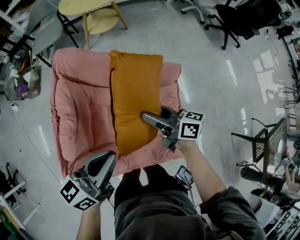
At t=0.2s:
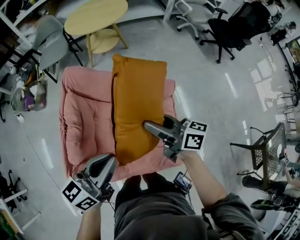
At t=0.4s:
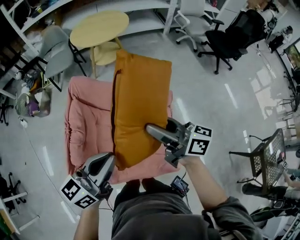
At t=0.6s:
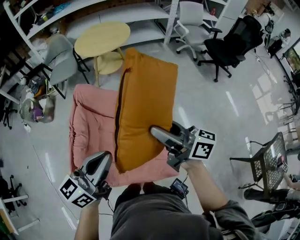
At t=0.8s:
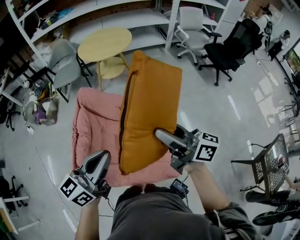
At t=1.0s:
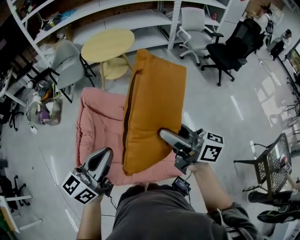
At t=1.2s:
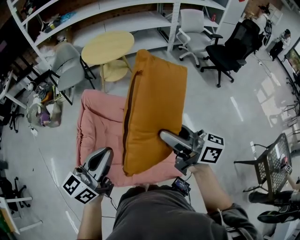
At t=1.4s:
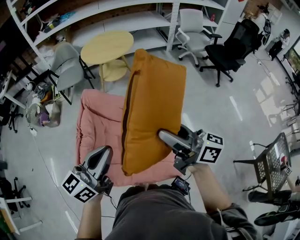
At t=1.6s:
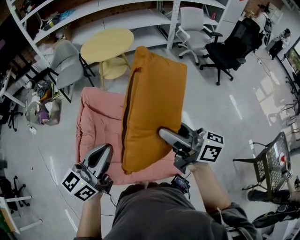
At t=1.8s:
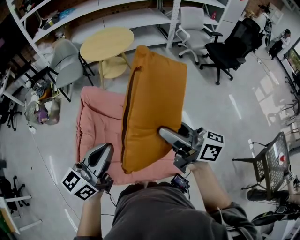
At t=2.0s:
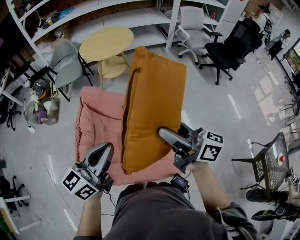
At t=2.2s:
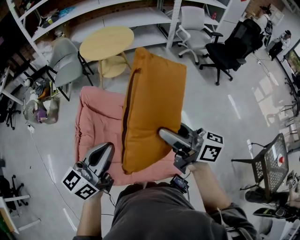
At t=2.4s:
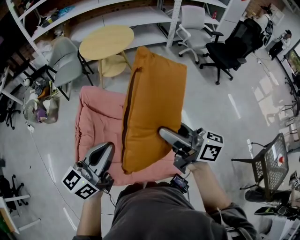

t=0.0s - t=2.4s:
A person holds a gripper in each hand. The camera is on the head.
t=0.0s - t=1.2s: The left gripper moves upward, some 15 cm. Meanwhile the right gripper heads upward, covering approximately 30 cm, and turns by approximately 20 degrees.
t=1.2s - t=2.4s: There are only small adjustments of the grippers.

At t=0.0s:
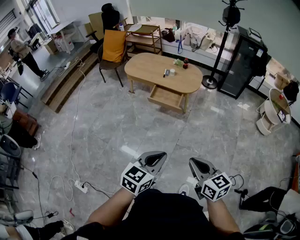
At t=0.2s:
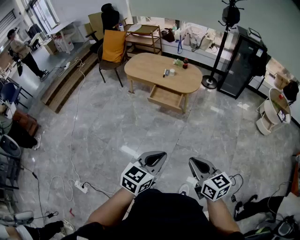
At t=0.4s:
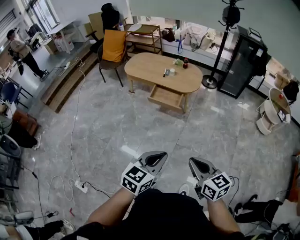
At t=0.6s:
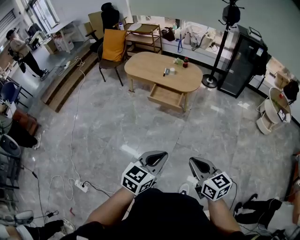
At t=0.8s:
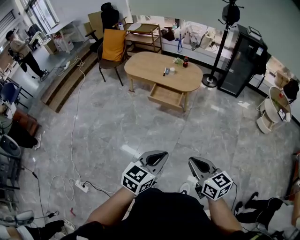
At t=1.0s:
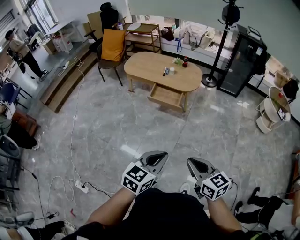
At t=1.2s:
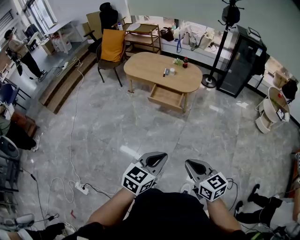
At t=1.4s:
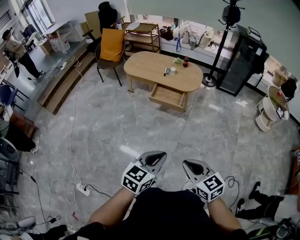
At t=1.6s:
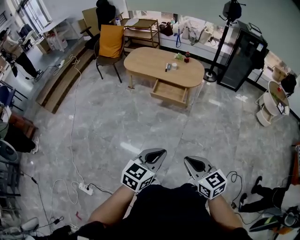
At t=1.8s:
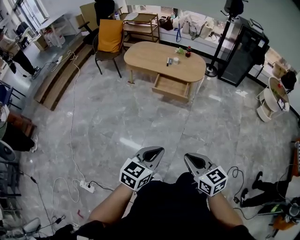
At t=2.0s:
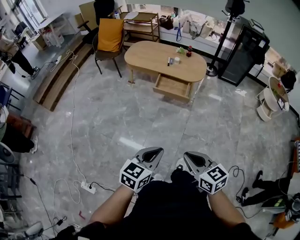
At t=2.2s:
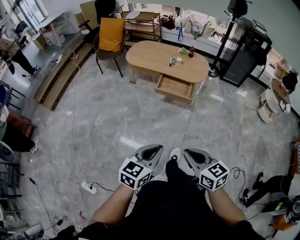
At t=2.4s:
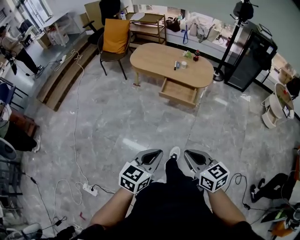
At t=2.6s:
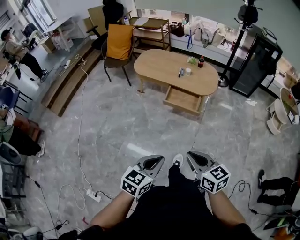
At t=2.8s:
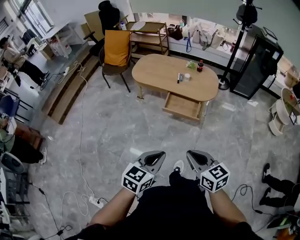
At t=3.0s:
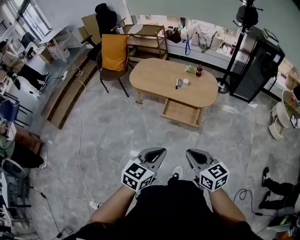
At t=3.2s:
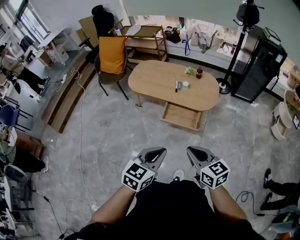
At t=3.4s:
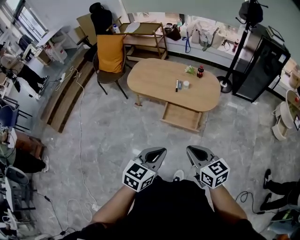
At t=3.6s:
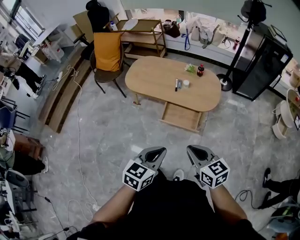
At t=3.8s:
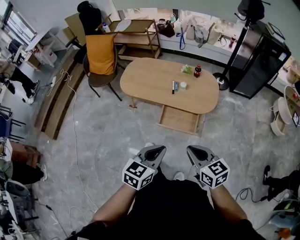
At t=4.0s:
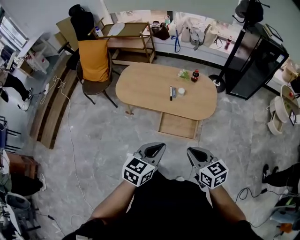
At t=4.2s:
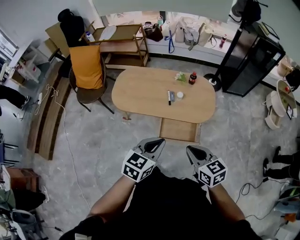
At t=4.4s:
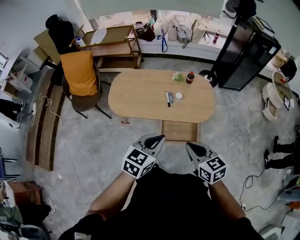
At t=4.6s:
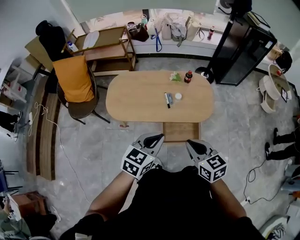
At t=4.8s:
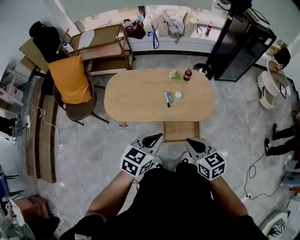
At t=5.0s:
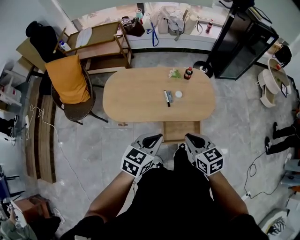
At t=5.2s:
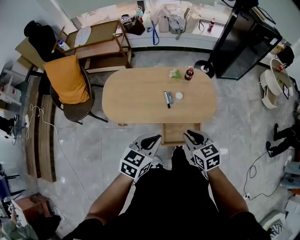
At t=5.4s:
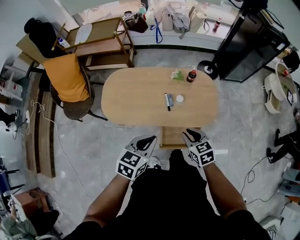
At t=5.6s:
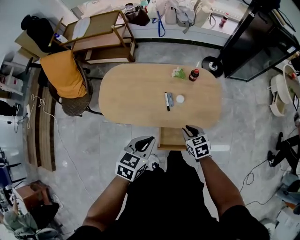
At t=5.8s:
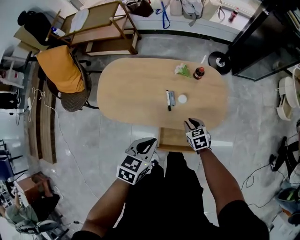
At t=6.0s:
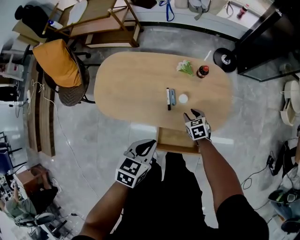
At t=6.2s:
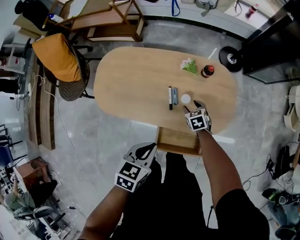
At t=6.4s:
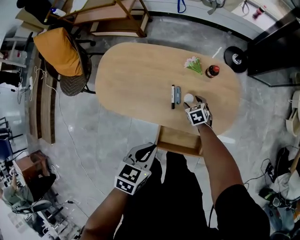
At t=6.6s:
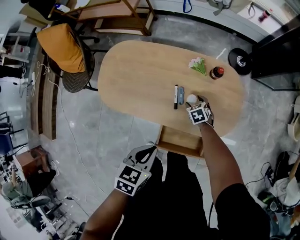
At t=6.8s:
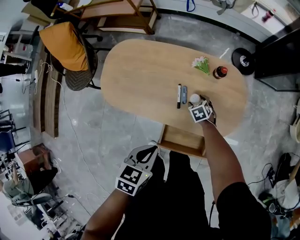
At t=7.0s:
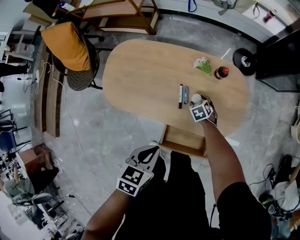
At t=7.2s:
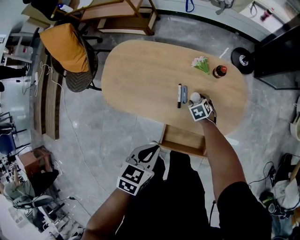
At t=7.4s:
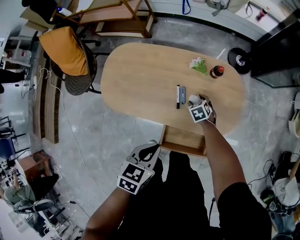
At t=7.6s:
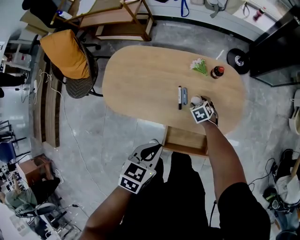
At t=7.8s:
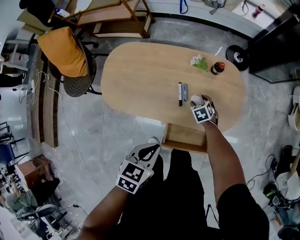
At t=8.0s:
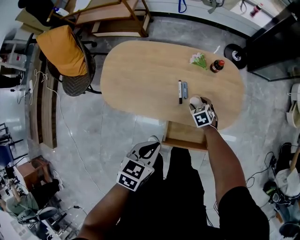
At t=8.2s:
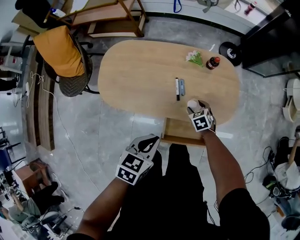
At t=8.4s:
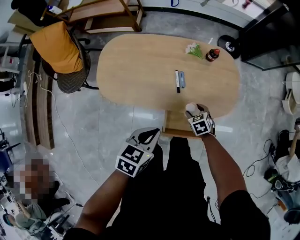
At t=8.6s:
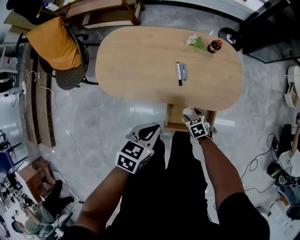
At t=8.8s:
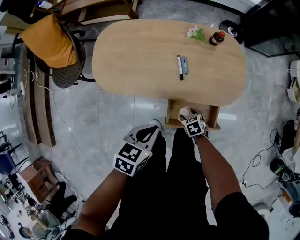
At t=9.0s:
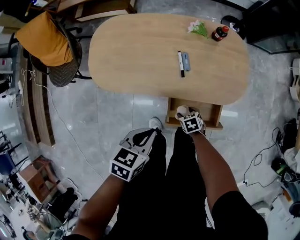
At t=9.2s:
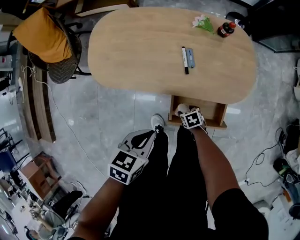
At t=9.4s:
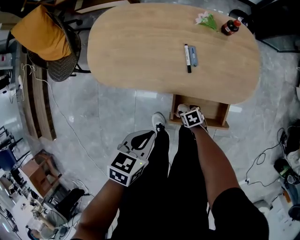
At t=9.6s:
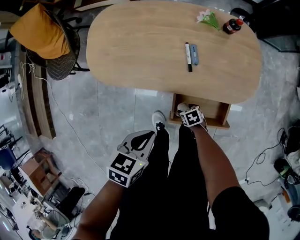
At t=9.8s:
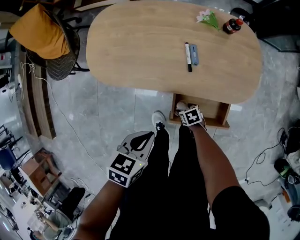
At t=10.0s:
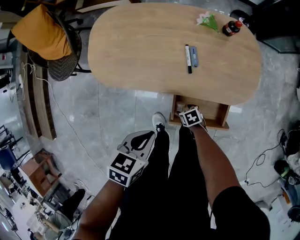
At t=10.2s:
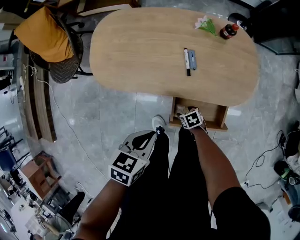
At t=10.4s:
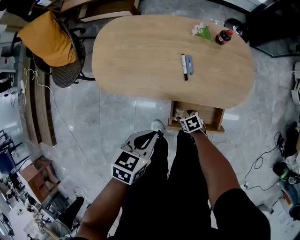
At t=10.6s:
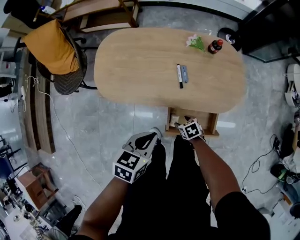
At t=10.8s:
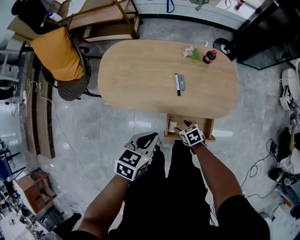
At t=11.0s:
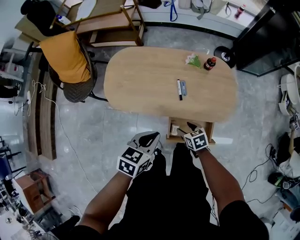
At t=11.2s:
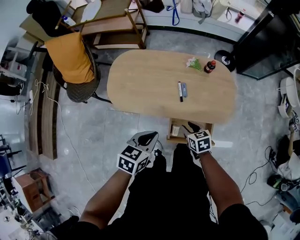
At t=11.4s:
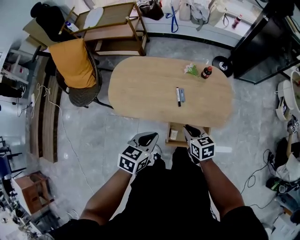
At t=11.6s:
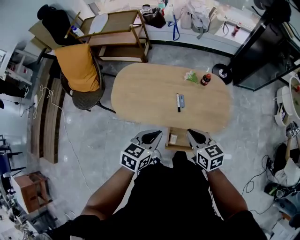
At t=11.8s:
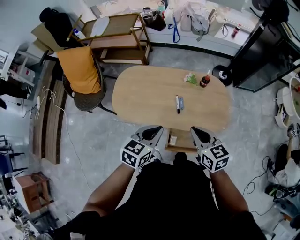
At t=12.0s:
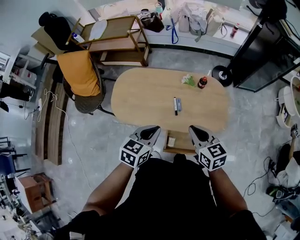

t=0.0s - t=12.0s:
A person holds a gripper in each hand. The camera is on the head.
t=0.0s - t=1.6s: Both grippers move to the left, roughly 10 cm.
t=1.6s - t=3.0s: The grippers both shift forward by some 25 cm.
t=3.0s - t=4.4s: Both grippers move forward, approximately 35 cm.
t=4.4s - t=6.0s: The right gripper goes roughly 50 cm downward and forward, swivels approximately 30 degrees, and opens, while the left gripper is displaced forward and downward by some 25 cm, and changes its angle by about 20 degrees.
t=6.0s - t=7.6s: The right gripper heads downward and forward, covering approximately 10 cm, and opens.
t=7.6s - t=9.0s: The right gripper travels backward by roughly 25 cm, and changes its angle by some 20 degrees; the left gripper goes roughly 10 cm backward, downward and to the left.
t=10.4s - t=12.0s: The right gripper travels upward by some 50 cm, points its fingers approximately 40 degrees further upward, and closes its fingers. The left gripper shifts about 20 cm upward.

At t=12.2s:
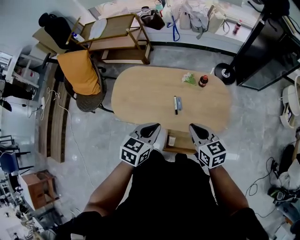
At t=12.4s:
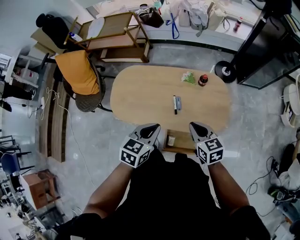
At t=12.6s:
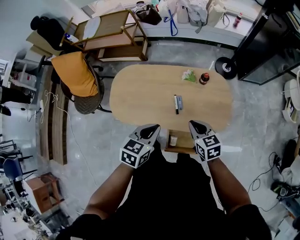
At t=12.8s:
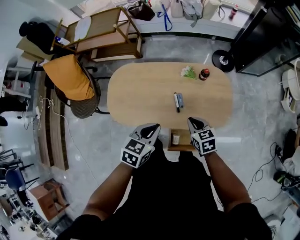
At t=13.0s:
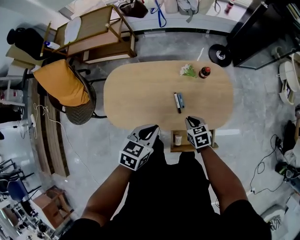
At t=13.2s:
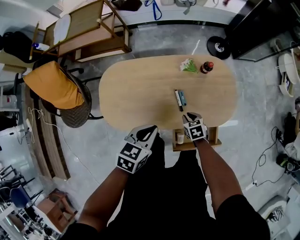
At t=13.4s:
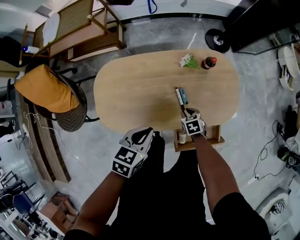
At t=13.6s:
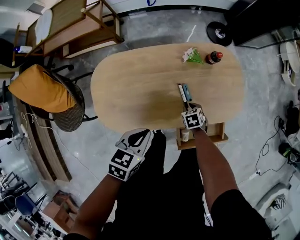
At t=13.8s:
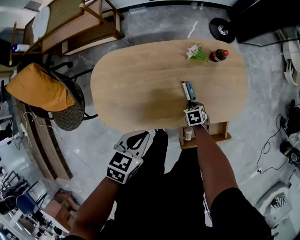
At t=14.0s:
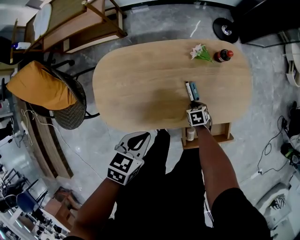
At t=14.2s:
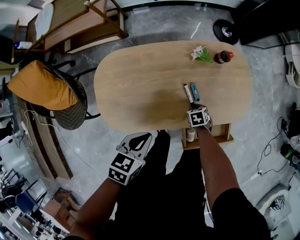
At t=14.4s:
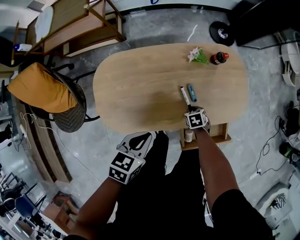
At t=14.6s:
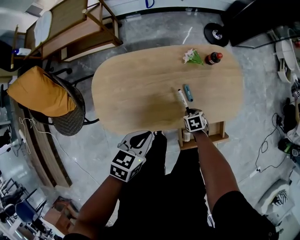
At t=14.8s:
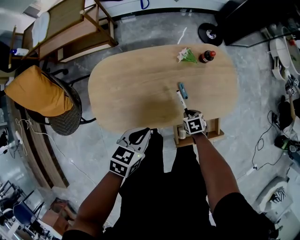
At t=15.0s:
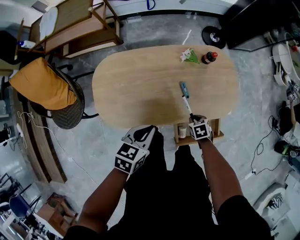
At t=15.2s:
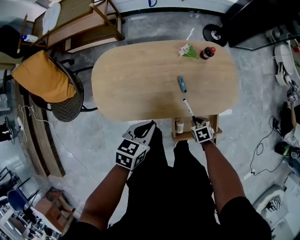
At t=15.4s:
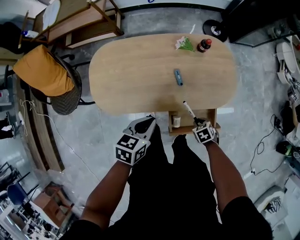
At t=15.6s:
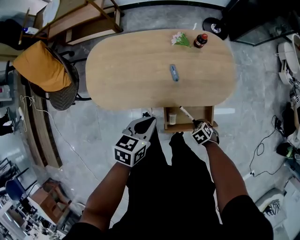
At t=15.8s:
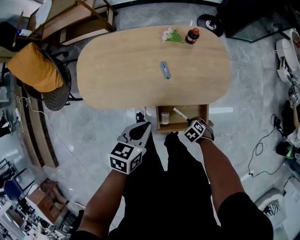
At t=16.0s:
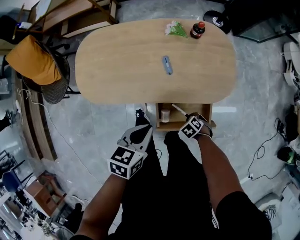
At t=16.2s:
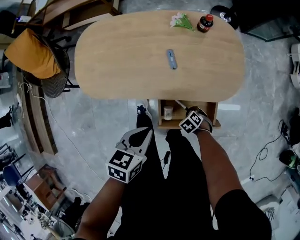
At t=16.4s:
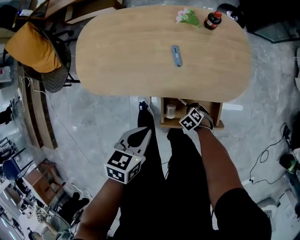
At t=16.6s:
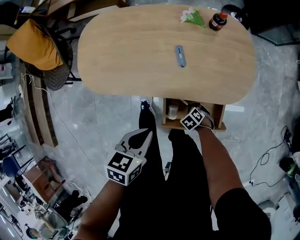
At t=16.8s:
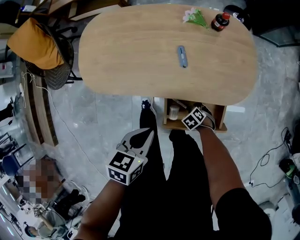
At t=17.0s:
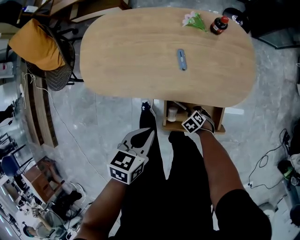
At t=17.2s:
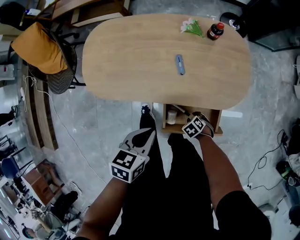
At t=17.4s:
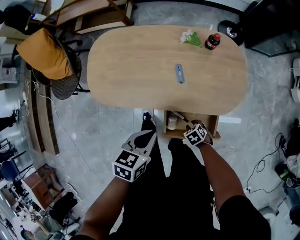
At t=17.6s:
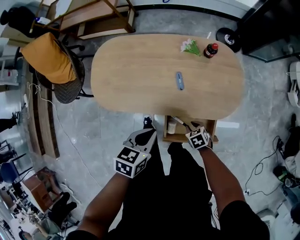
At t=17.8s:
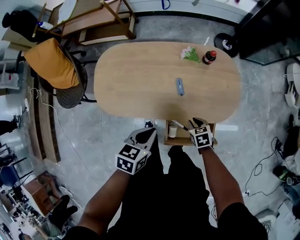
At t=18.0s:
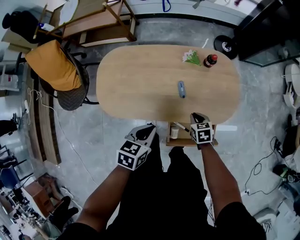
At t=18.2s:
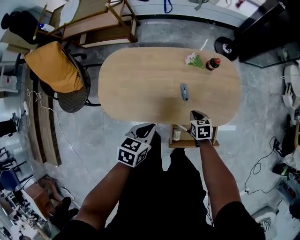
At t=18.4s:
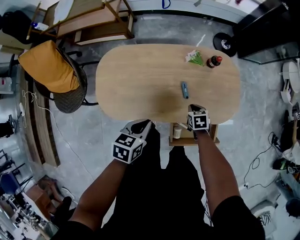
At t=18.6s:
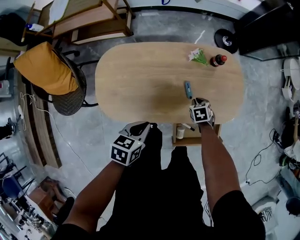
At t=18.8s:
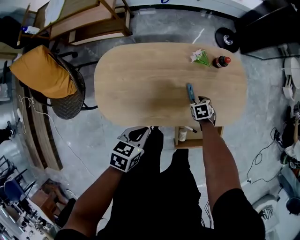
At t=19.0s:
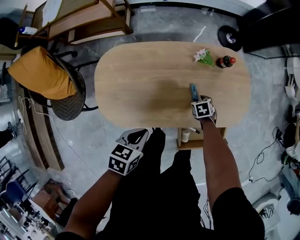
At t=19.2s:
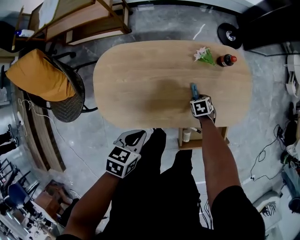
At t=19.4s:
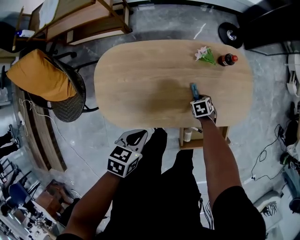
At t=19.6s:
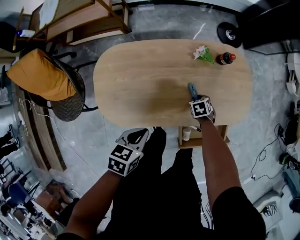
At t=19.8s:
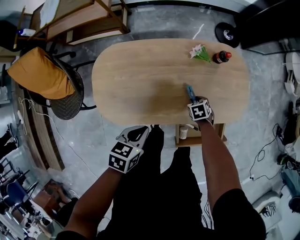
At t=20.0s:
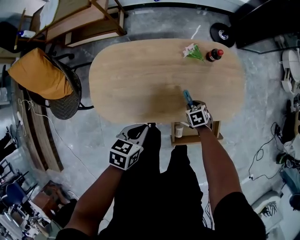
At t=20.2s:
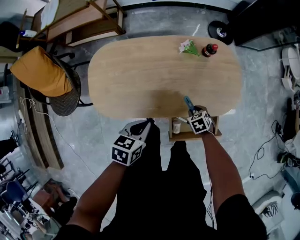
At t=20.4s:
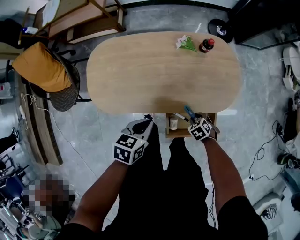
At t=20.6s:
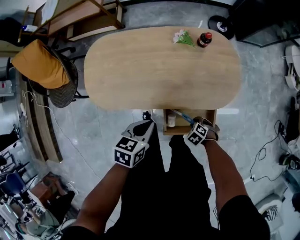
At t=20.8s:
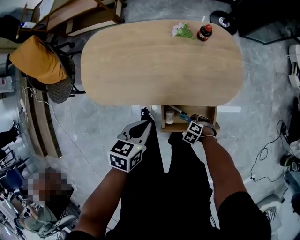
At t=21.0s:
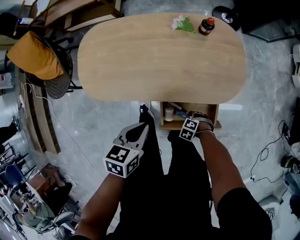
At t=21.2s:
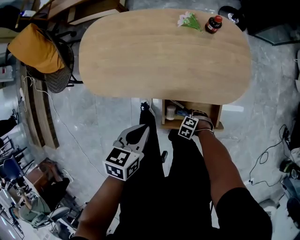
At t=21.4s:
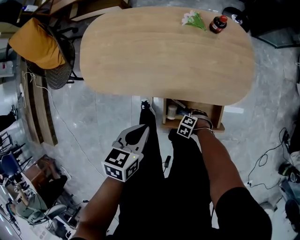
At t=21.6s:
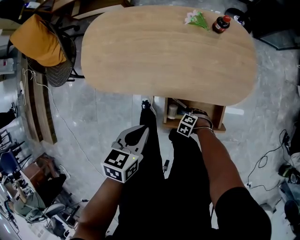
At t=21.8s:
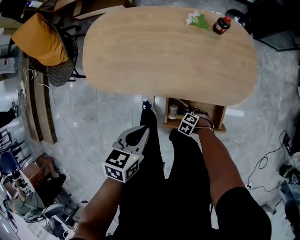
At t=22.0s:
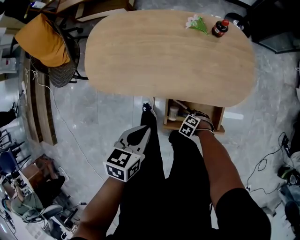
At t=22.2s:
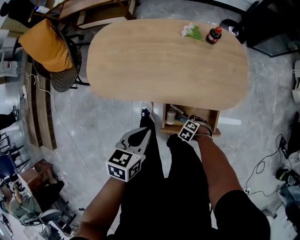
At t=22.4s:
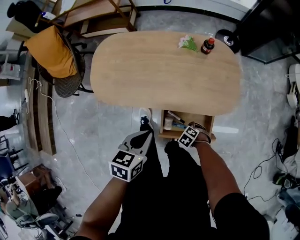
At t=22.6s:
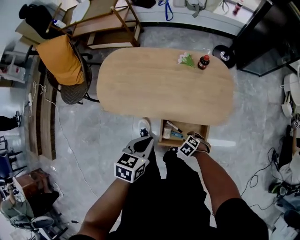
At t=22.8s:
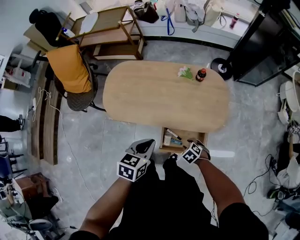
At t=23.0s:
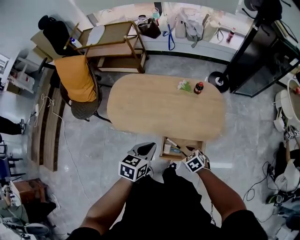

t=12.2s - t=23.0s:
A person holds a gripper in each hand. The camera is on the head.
t=12.2s - t=13.8s: The left gripper ends up some 25 cm from where it was, and turns by roughly 20 degrees, while the right gripper shifts roughly 40 cm downward, and points its fingers about 50 degrees further downward.
t=13.8s - t=15.2s: The left gripper ends up about 5 cm from where it was. The right gripper changes place by approximately 15 cm.
t=15.2s - t=16.8s: The right gripper is displaced downward by about 20 cm, and changes its angle by about 30 degrees, while the left gripper shifts by some 15 cm.
t=16.8s - t=18.4s: The right gripper travels upward by about 20 cm, changes its angle by about 40 degrees, and closes its fingers; the left gripper moves approximately 20 cm.
t=18.4s - t=20.0s: The right gripper opens.
t=20.0s - t=21.4s: The right gripper shifts by approximately 30 cm, and rolls counterclockwise, seen from behind, by some 60 degrees. Meanwhile the left gripper moves about 15 cm.
t=21.4s - t=23.0s: The left gripper is displaced upward by approximately 20 cm. Meanwhile the right gripper travels upward by some 35 cm, and rotates about 40 degrees.
